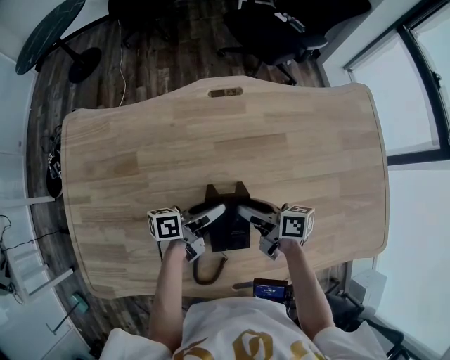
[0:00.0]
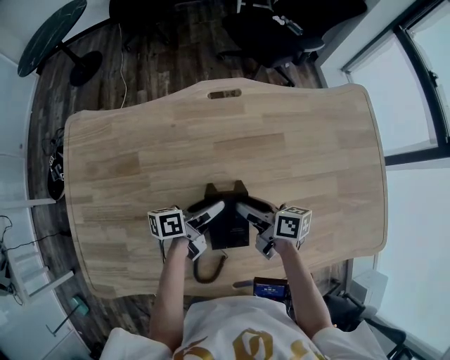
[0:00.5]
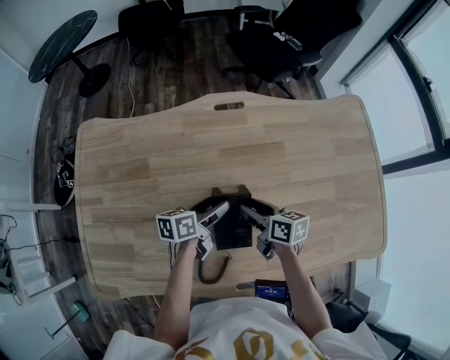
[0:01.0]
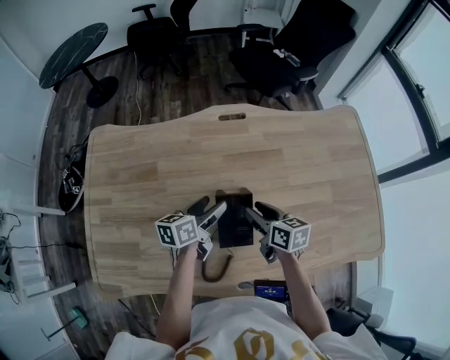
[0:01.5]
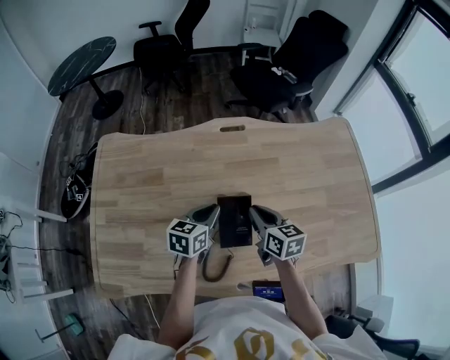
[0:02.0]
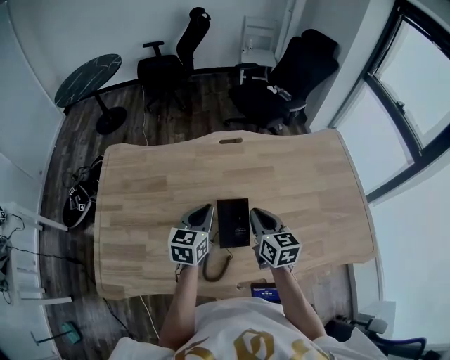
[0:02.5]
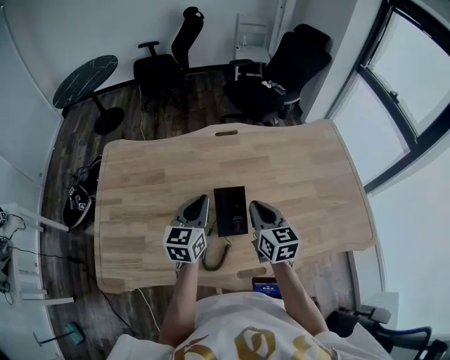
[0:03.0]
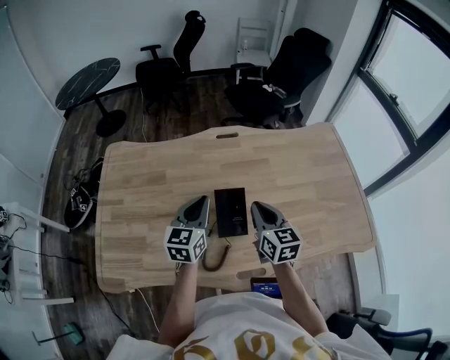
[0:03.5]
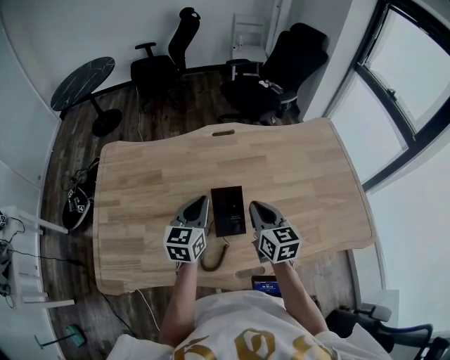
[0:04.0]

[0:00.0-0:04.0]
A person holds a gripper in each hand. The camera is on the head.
0:00.0 to 0:02.0: Both grippers travel together upward, some 10 cm. The right gripper turns by about 40 degrees, and closes. The left gripper rotates around the line of its fingers by some 40 degrees, clockwise from behind, and closes up.
0:02.0 to 0:04.0: The two grippers go some 10 cm upward and backward. The left gripper turns by about 20 degrees.

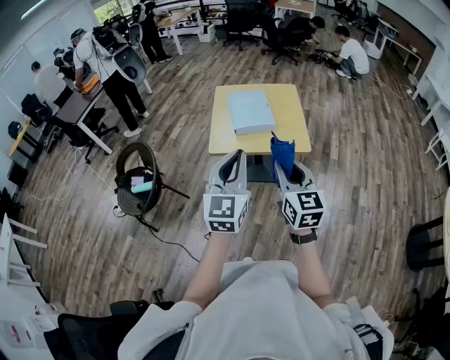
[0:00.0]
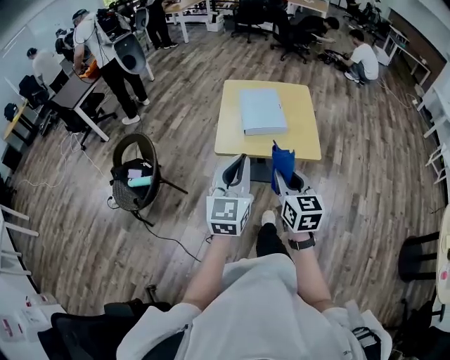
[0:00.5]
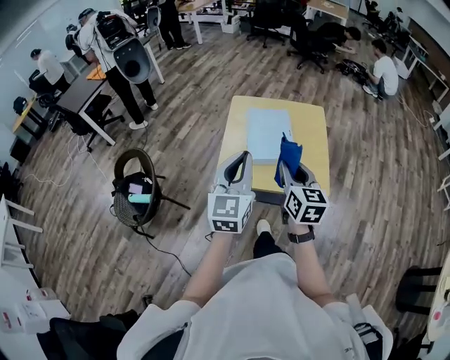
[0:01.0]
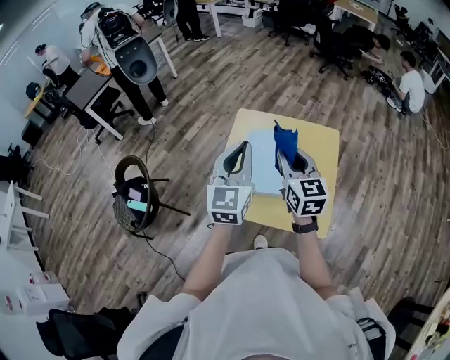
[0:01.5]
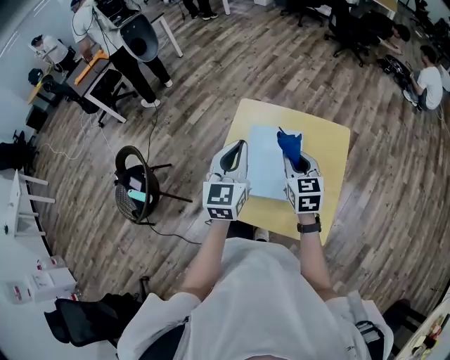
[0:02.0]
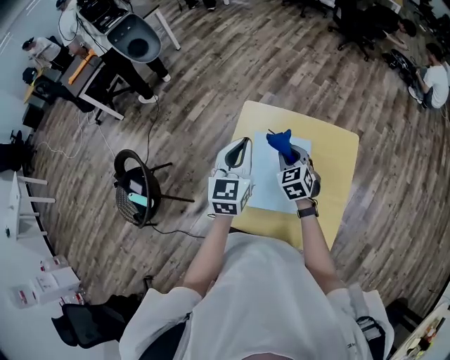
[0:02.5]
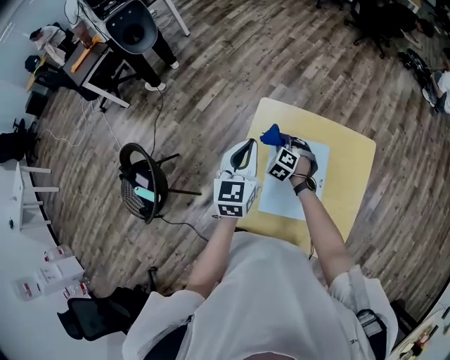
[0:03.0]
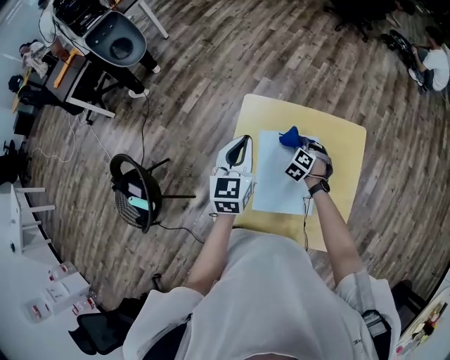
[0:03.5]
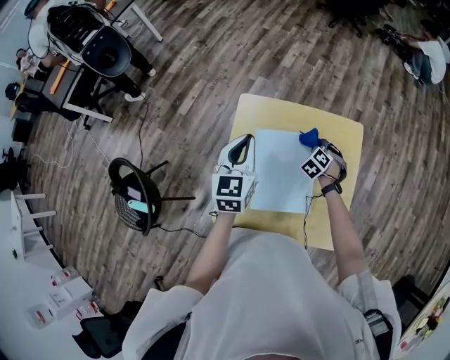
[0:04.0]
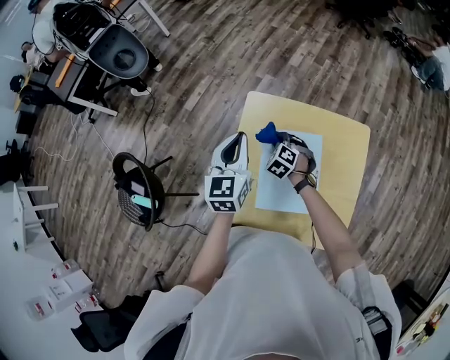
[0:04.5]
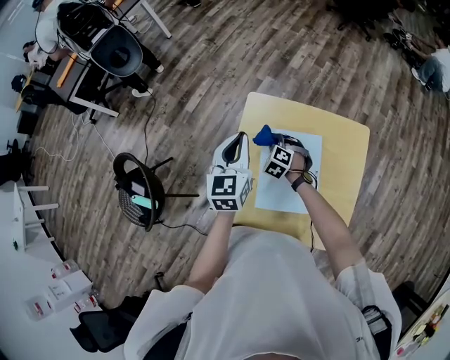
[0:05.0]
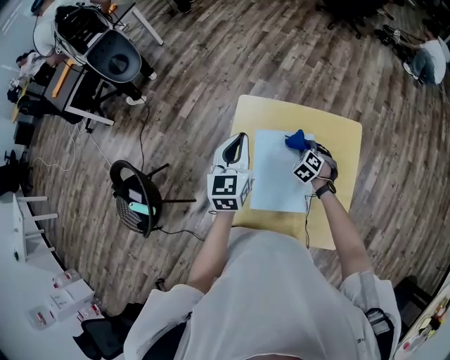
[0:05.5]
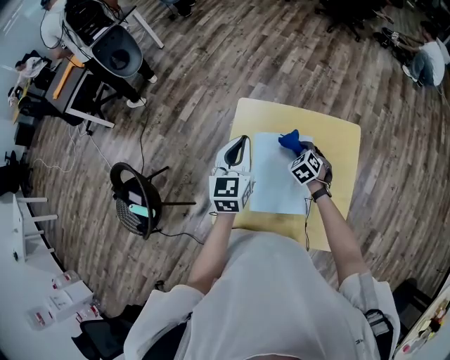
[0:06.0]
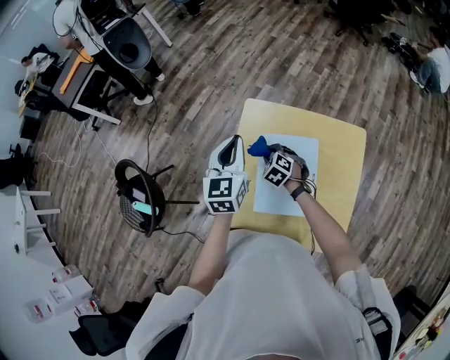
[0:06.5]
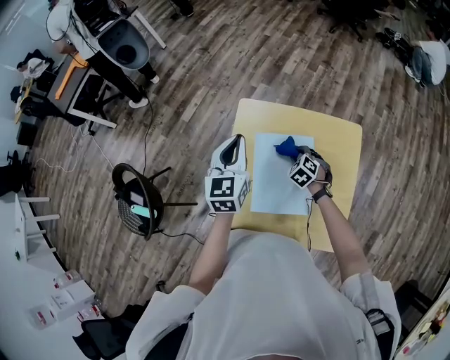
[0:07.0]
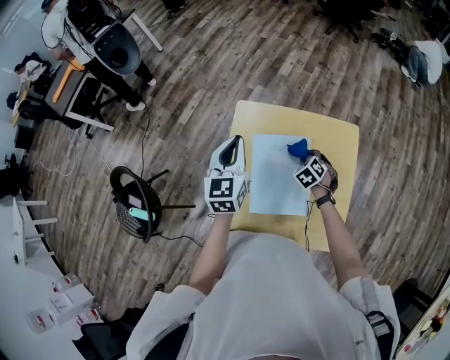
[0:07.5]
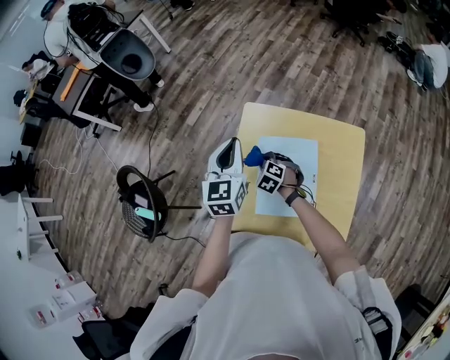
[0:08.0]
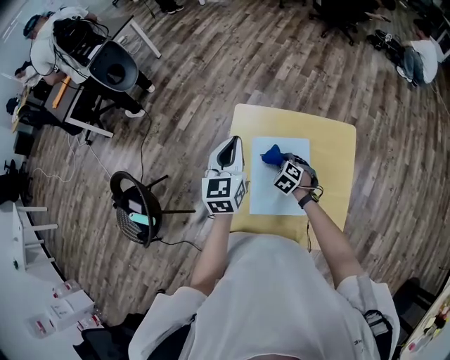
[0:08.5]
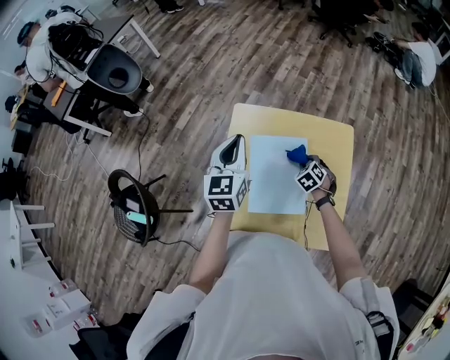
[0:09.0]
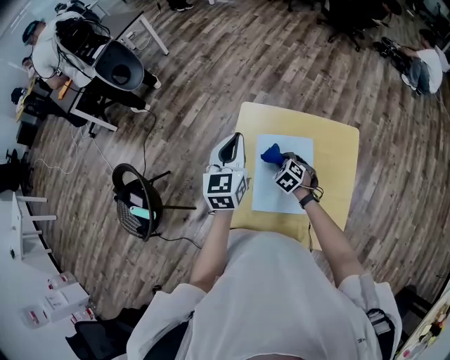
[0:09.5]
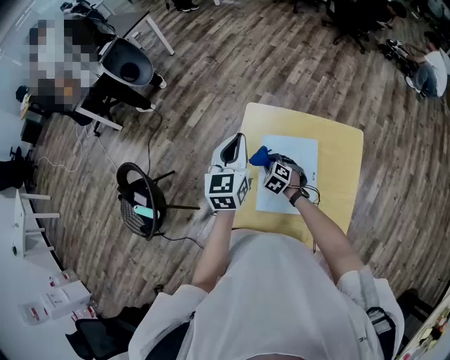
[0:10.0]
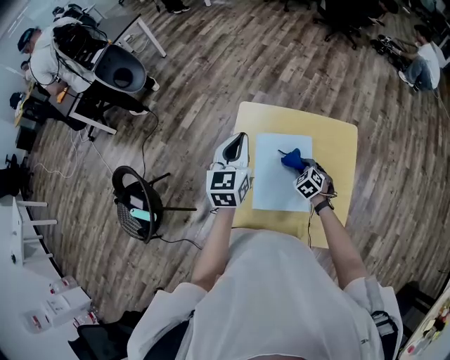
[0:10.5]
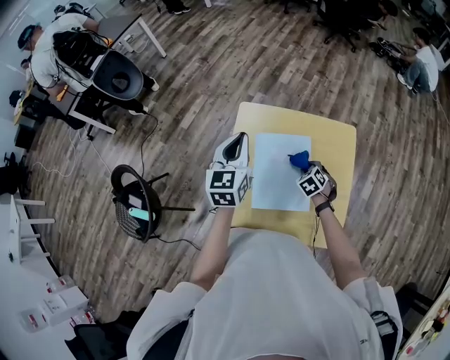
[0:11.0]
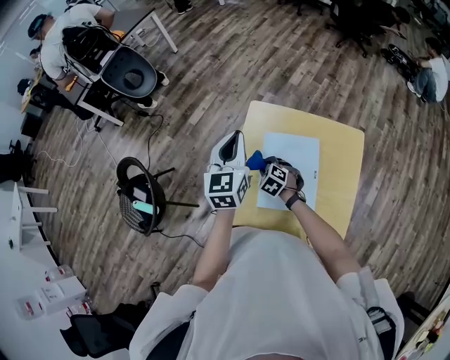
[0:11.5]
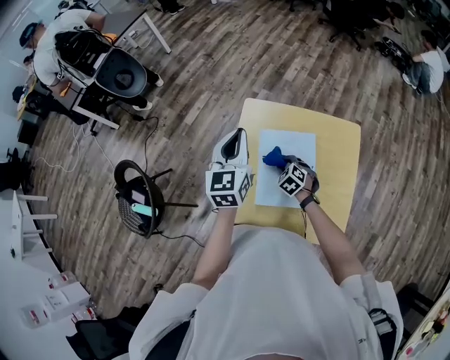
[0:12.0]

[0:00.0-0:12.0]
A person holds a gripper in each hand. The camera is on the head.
0:00.0 to 0:02.0: Both grippers are carried forward, some 50 cm. The left gripper rotates about 20 degrees; the right gripper swivels approximately 20 degrees.
0:02.0 to 0:04.0: The left gripper is displaced forward and downward by roughly 15 cm. The right gripper heads downward and forward, covering about 30 cm, and tilts its fingers approximately 40 degrees downward.
0:04.0 to 0:06.0: The right gripper moves to the left, some 5 cm.
0:06.0 to 0:08.0: The right gripper moves left and right over approximately 20 cm, changing direction 2 times, and changes its angle by about 20 degrees.
0:08.0 to 0:10.0: The right gripper reaches approximately 20 cm to the right, then returns.
0:10.0 to 0:12.0: The right gripper moves left and right over some 20 cm, changing direction 2 times.

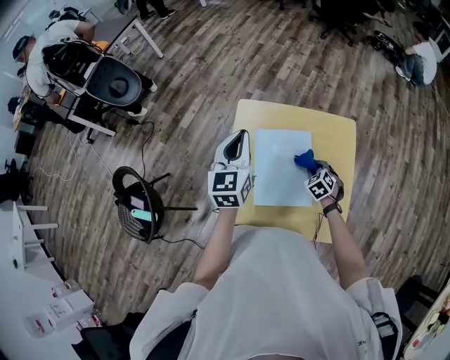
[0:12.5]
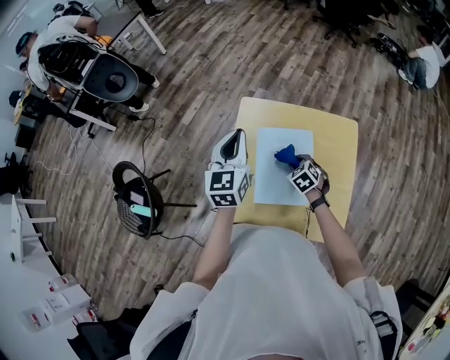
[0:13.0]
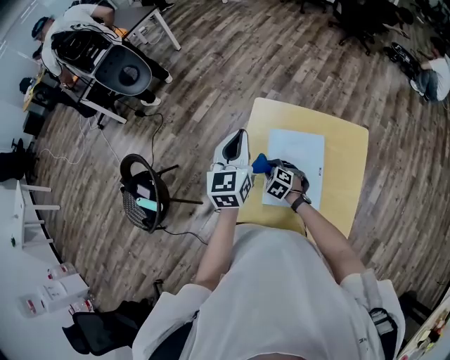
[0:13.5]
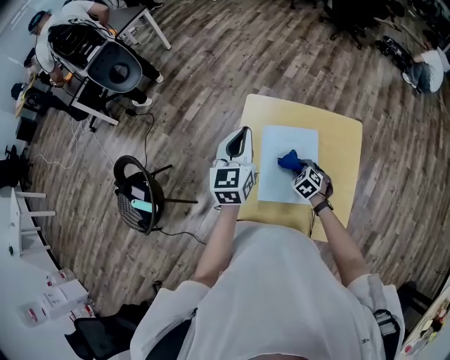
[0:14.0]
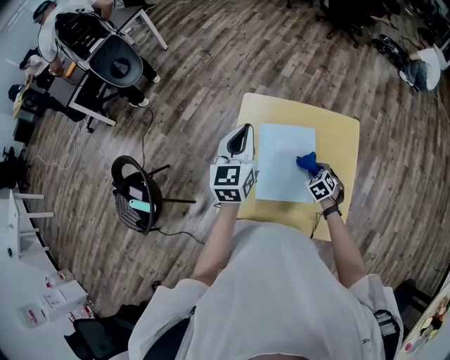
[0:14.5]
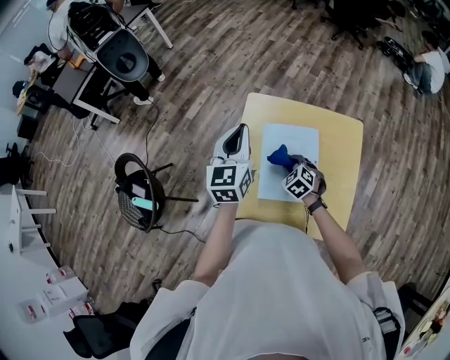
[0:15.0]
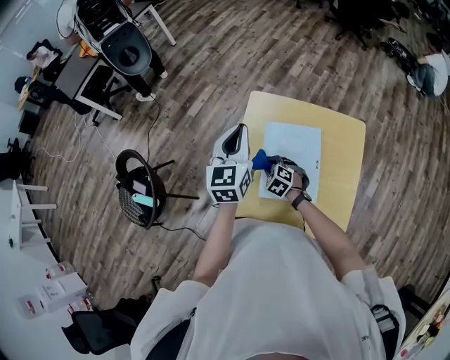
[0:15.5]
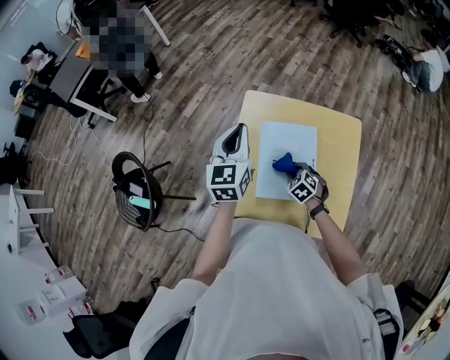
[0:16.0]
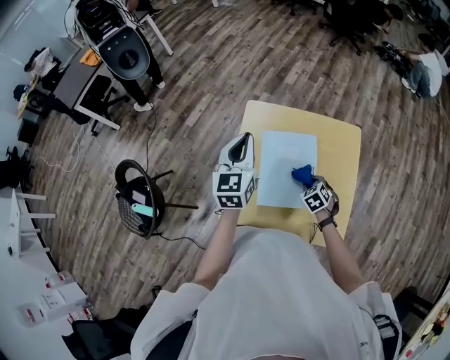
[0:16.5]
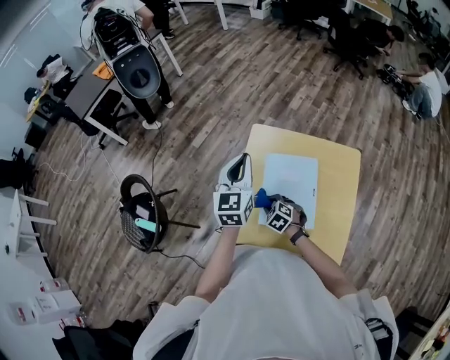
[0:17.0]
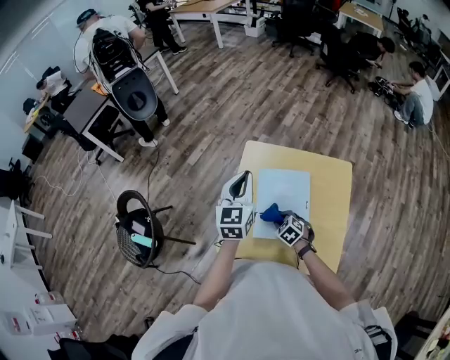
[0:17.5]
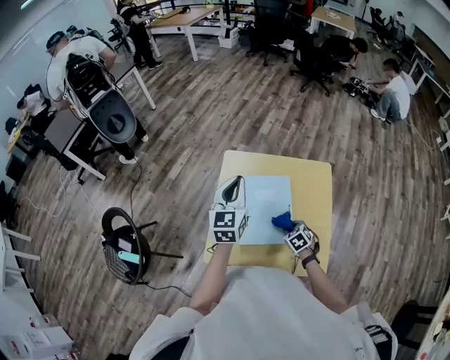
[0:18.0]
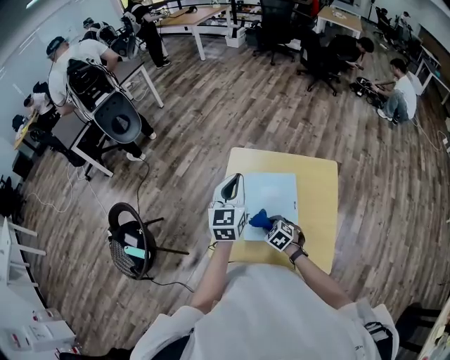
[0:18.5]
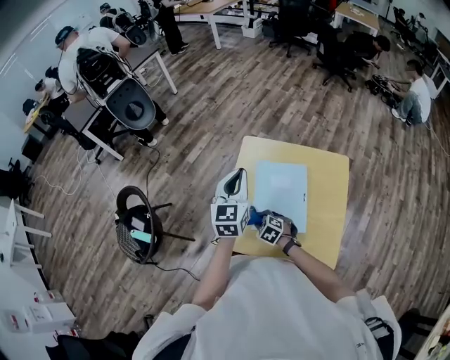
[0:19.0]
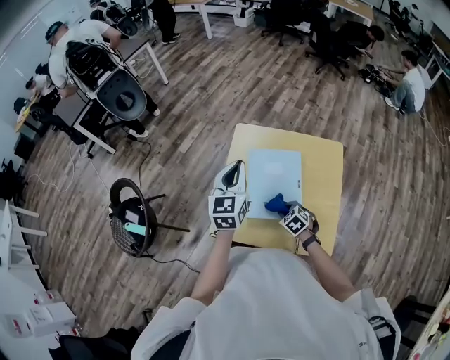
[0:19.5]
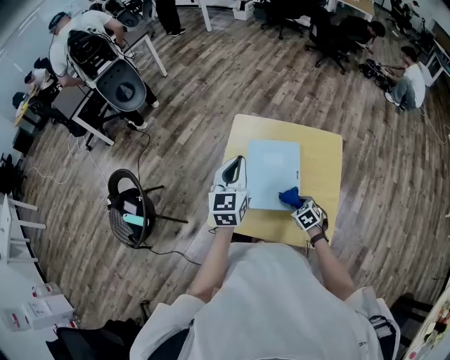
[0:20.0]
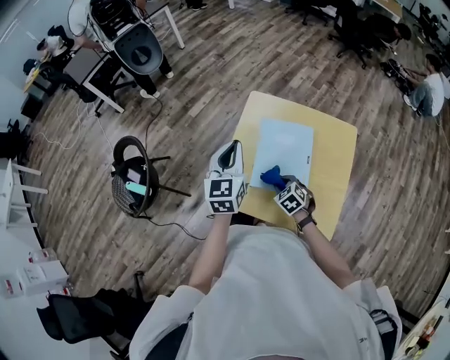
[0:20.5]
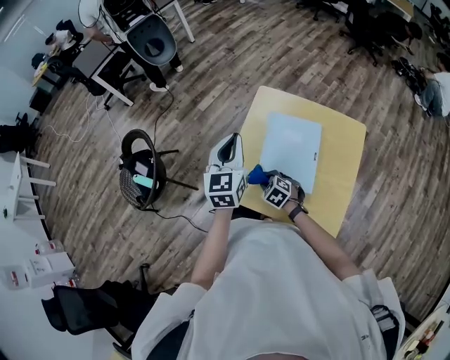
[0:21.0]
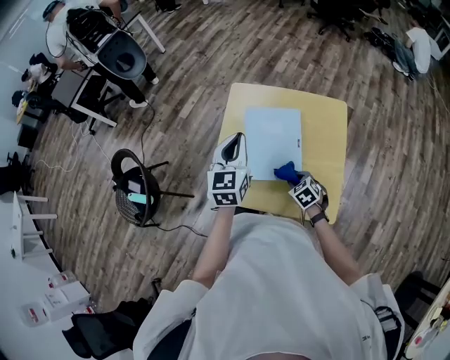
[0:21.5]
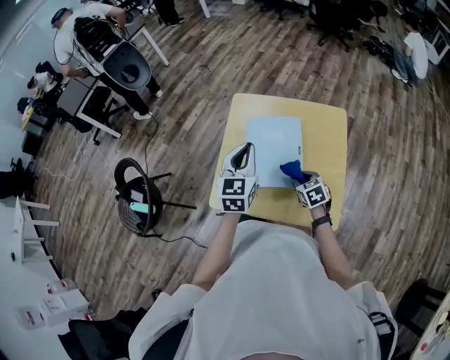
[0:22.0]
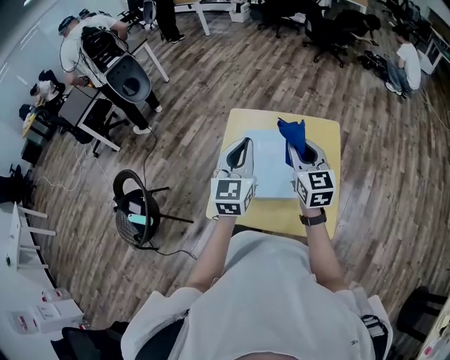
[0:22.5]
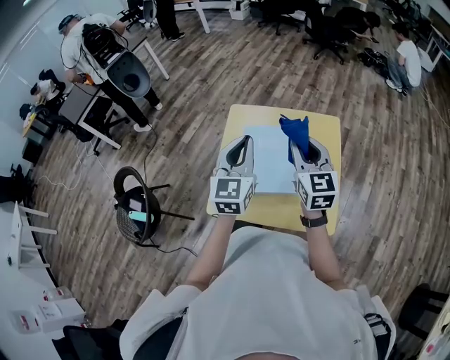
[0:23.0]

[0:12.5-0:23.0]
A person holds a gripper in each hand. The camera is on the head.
0:12.5 to 0:14.5: The right gripper goes to the left and returns, roughly 25 cm each way.
0:14.5 to 0:16.5: The right gripper goes to the left and returns, roughly 20 cm each way.
0:16.5 to 0:19.0: The right gripper moves left and right over approximately 20 cm, changing direction 2 times, and changes its angle by roughly 30 degrees.
0:19.0 to 0:21.0: The left gripper shifts about 5 cm to the left. The right gripper reaches approximately 20 cm to the right, then returns.
0:21.0 to 0:23.0: The left gripper moves some 15 cm. Meanwhile the right gripper is displaced upward by approximately 30 cm, and points its fingers approximately 50 degrees further upward.
